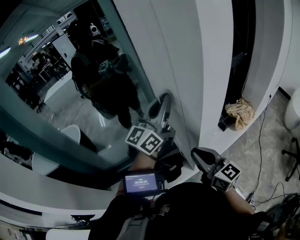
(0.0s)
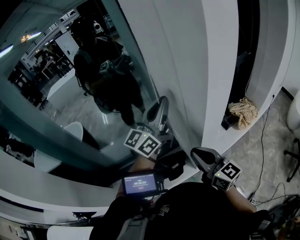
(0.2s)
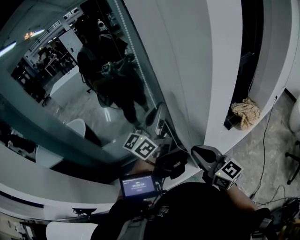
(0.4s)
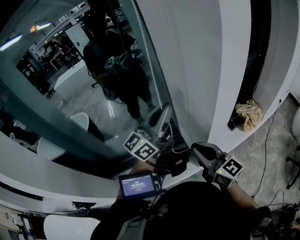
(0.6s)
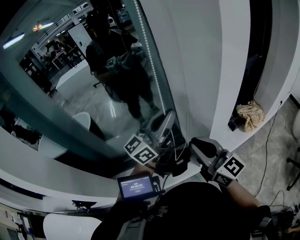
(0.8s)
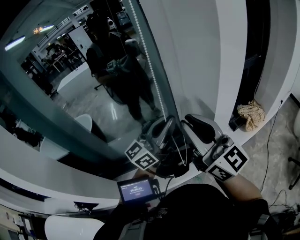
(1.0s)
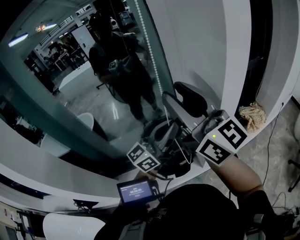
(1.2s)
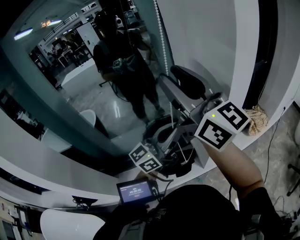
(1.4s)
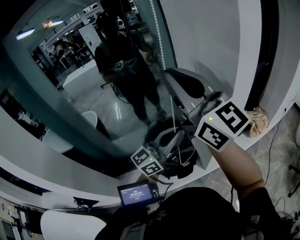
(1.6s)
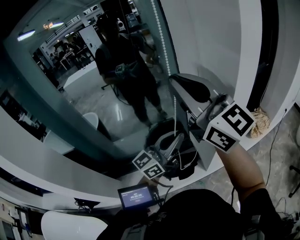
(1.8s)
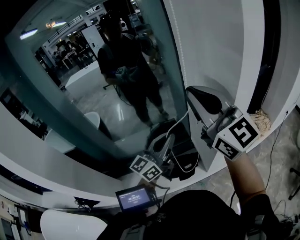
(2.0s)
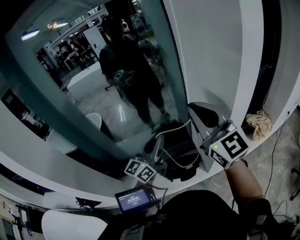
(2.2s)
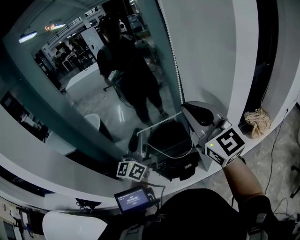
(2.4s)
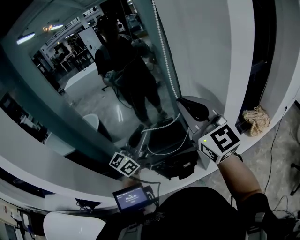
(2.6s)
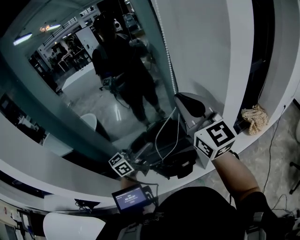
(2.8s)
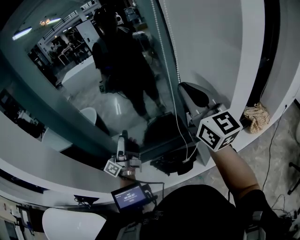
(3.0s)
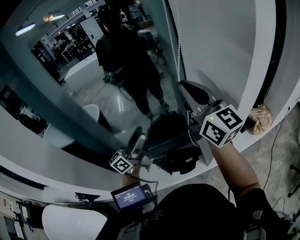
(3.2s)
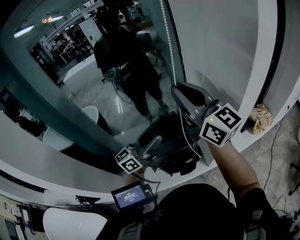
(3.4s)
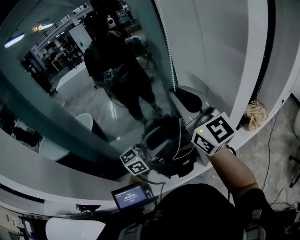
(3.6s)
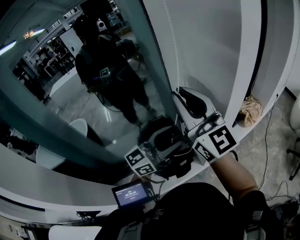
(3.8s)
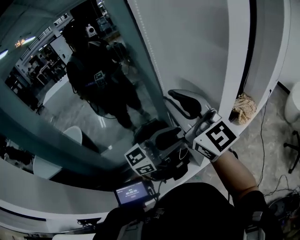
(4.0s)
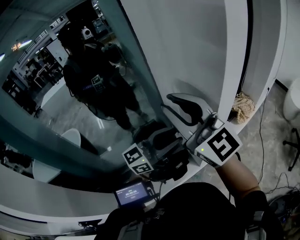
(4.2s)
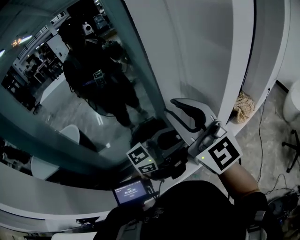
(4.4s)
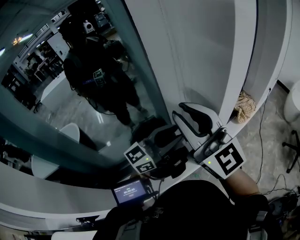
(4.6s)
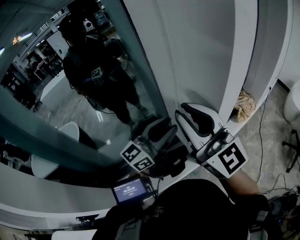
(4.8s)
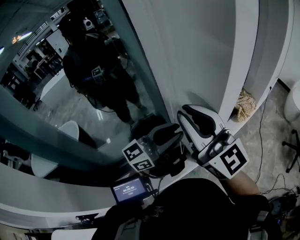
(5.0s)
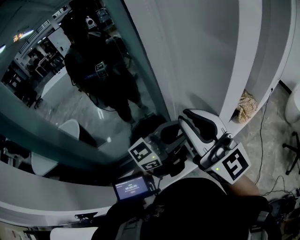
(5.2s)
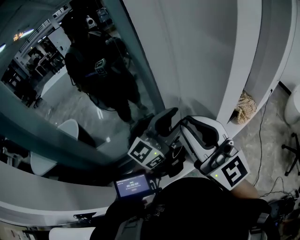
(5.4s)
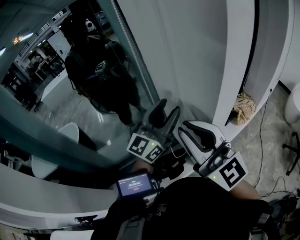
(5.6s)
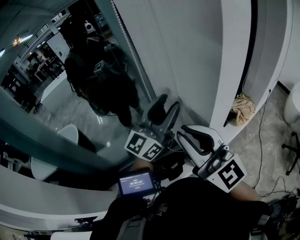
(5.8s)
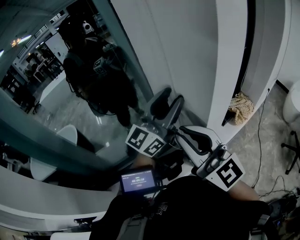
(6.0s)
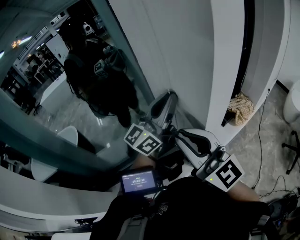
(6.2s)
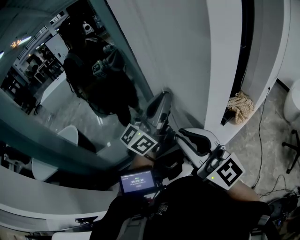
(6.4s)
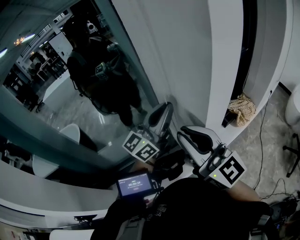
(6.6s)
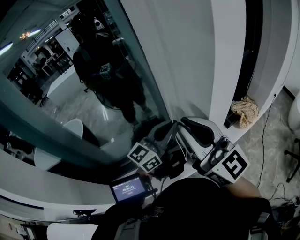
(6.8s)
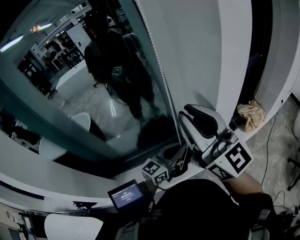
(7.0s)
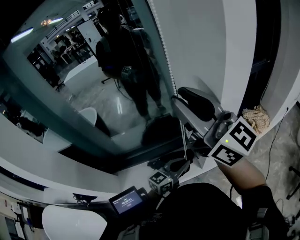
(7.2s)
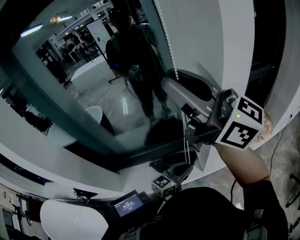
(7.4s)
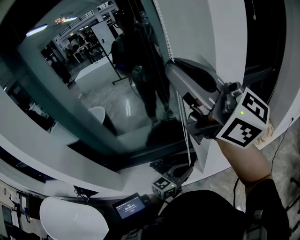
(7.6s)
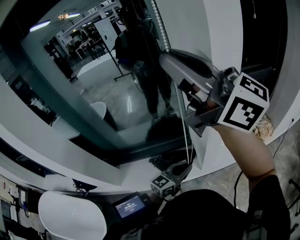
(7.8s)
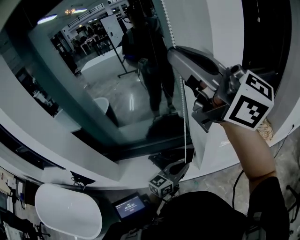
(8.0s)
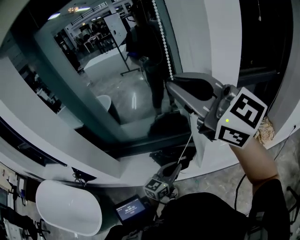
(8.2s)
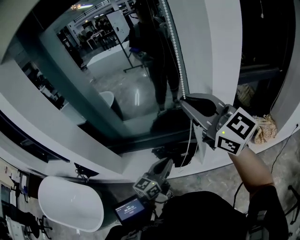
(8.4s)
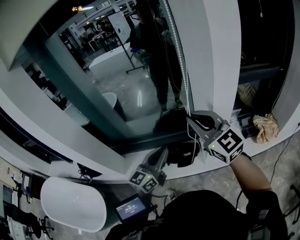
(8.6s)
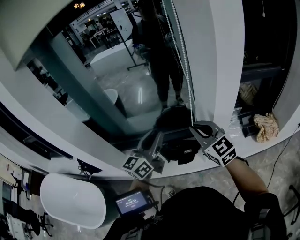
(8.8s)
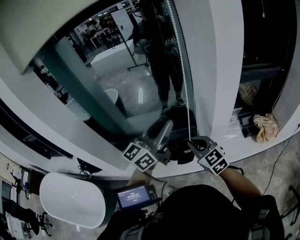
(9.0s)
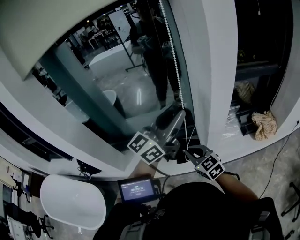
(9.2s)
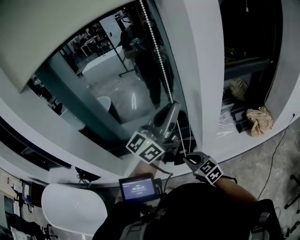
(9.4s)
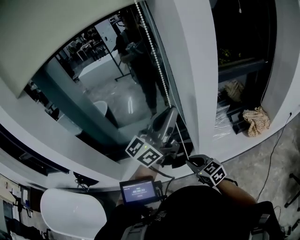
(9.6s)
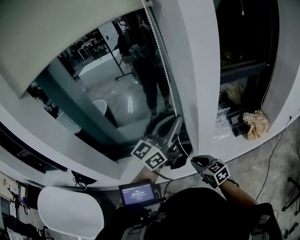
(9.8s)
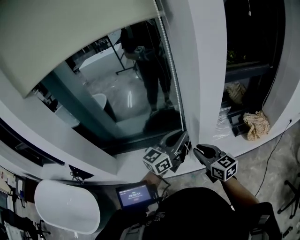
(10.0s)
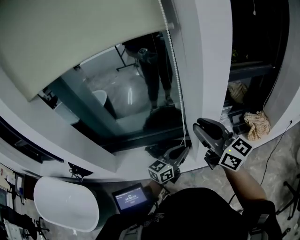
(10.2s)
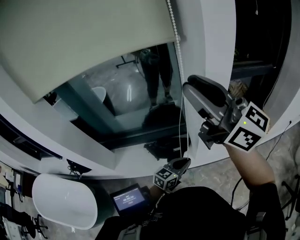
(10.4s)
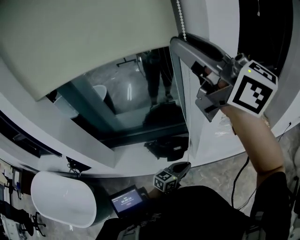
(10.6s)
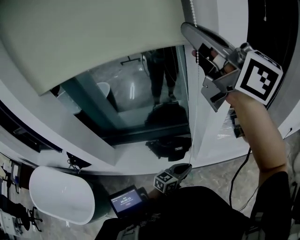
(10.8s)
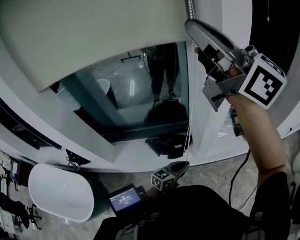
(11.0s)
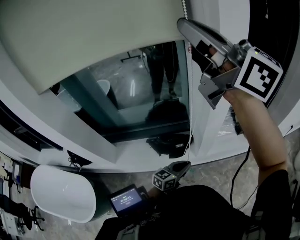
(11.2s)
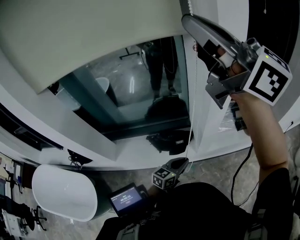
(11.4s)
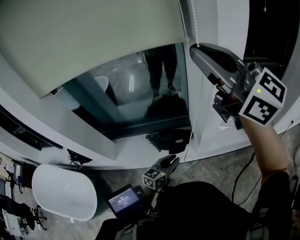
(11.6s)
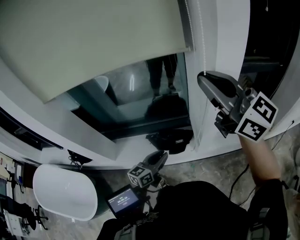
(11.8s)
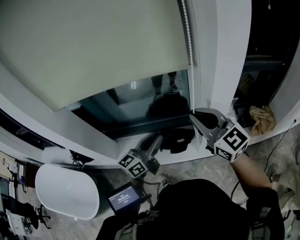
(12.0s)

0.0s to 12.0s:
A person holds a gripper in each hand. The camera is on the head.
0.0s to 1.6s: The right gripper travels upward by about 30 cm, changes its angle by about 30 degrees, and opens, then closes again. The left gripper heads backward, downward and to the left, covering some 15 cm.
1.6s to 3.0s: The left gripper swings left and right, about 25 cm each way, with 2 reversals, turns by some 40 degrees, and opens its fingers, while the right gripper heads downward, covering about 10 cm.
3.0s to 4.4s: The left gripper changes place by approximately 30 cm, swivels approximately 60 degrees, and closes up.
4.4s to 6.0s: The right gripper shifts some 10 cm downward and to the right. The left gripper goes some 15 cm upward and forward, and turns by approximately 30 degrees.
6.0s to 7.6s: The right gripper heads upward, covering approximately 20 cm, and changes its angle by roughly 30 degrees; the left gripper travels downward and backward by roughly 30 cm, tilts its fingers roughly 30 degrees downward, and closes up.
7.6s to 9.0s: The left gripper heads upward, covering about 25 cm, and changes its angle by approximately 30 degrees, while the right gripper moves downward, roughly 40 cm, and angles its fingers downward, by roughly 50 degrees.
9.0s to 10.4s: The right gripper is displaced upward by some 35 cm, angles its fingers upward, by roughly 40 degrees, and opens its fingers. The left gripper is displaced downward by some 30 cm, and points its fingers some 30 degrees further downward.
10.4s to 12.0s: The right gripper shifts approximately 20 cm downward, turns by approximately 30 degrees, and closes, while the left gripper goes approximately 20 cm upward and to the left, and changes its angle by about 30 degrees.

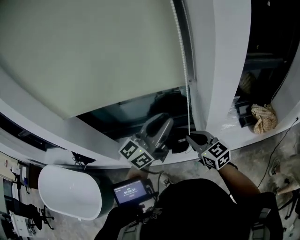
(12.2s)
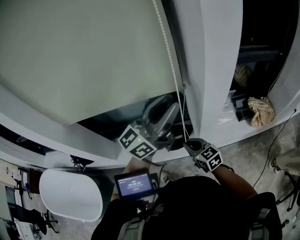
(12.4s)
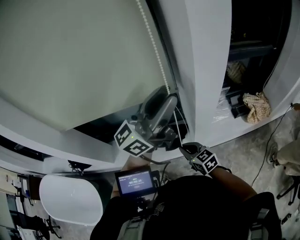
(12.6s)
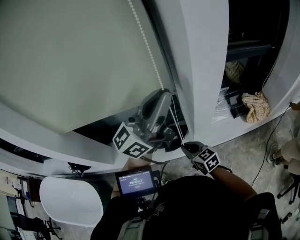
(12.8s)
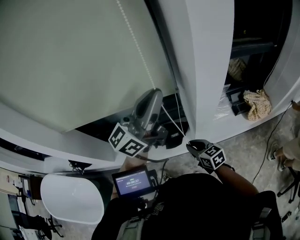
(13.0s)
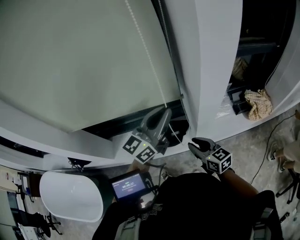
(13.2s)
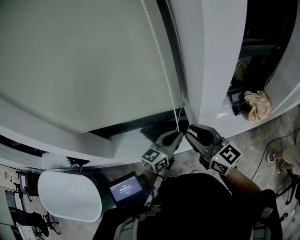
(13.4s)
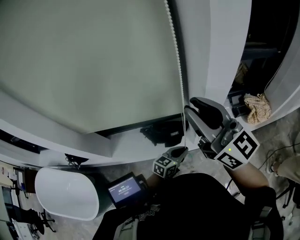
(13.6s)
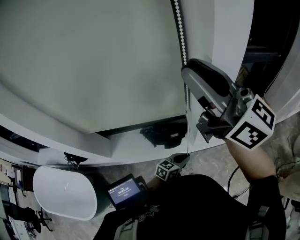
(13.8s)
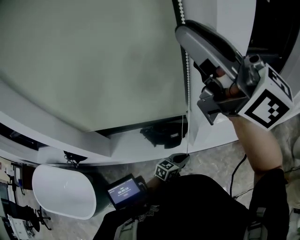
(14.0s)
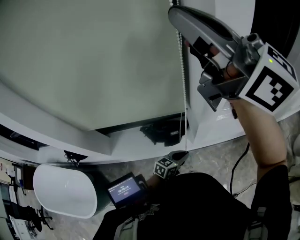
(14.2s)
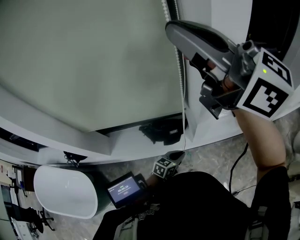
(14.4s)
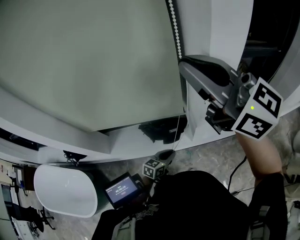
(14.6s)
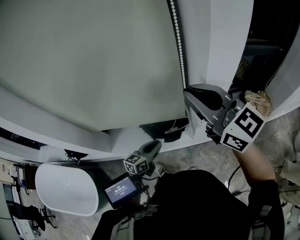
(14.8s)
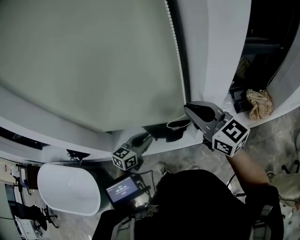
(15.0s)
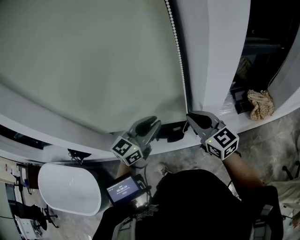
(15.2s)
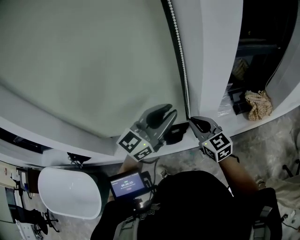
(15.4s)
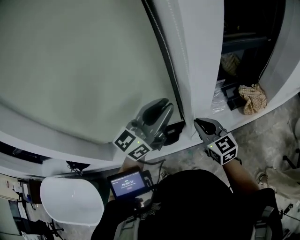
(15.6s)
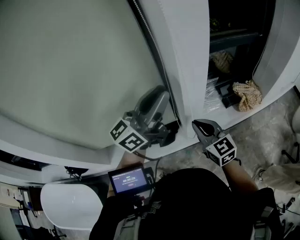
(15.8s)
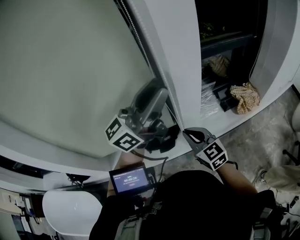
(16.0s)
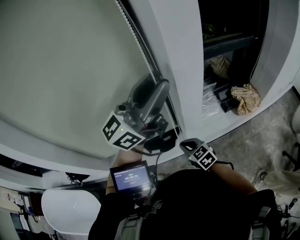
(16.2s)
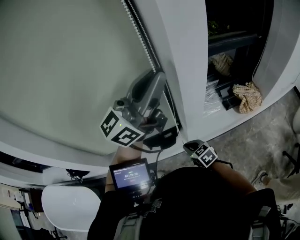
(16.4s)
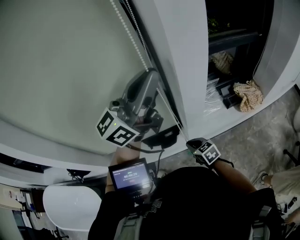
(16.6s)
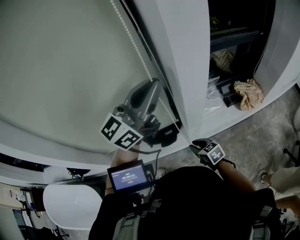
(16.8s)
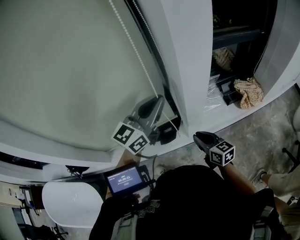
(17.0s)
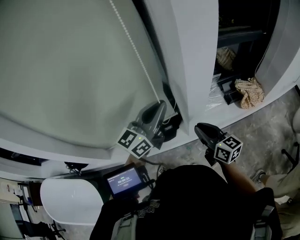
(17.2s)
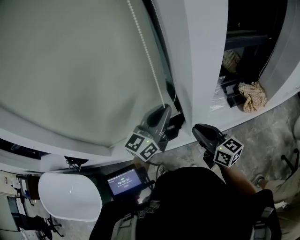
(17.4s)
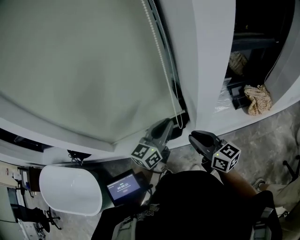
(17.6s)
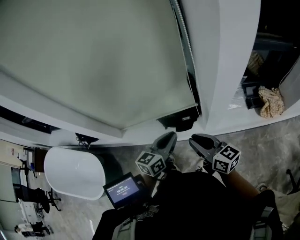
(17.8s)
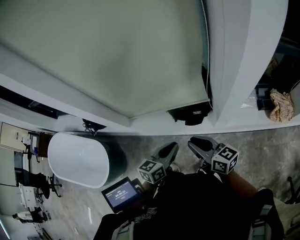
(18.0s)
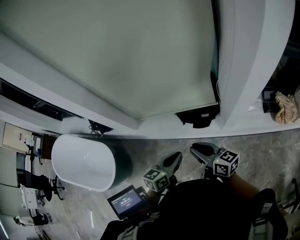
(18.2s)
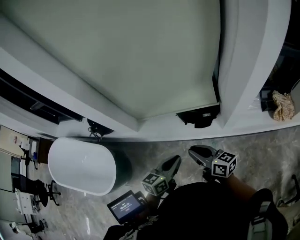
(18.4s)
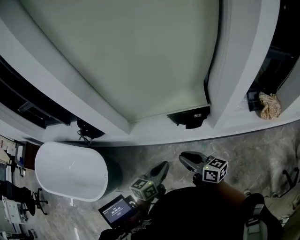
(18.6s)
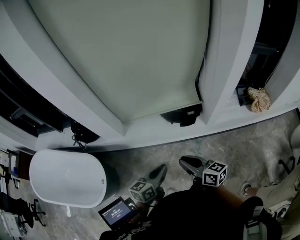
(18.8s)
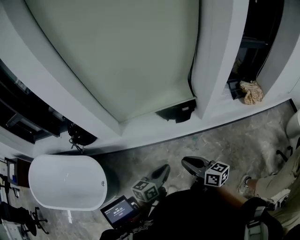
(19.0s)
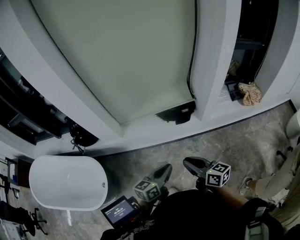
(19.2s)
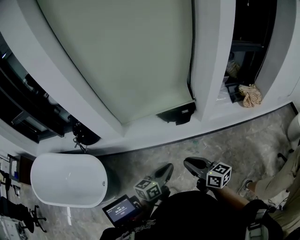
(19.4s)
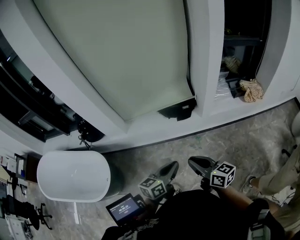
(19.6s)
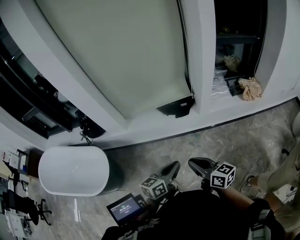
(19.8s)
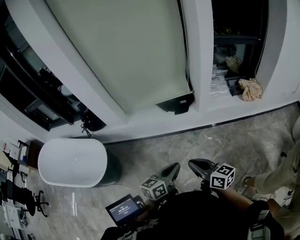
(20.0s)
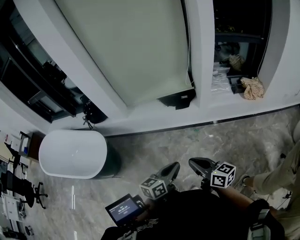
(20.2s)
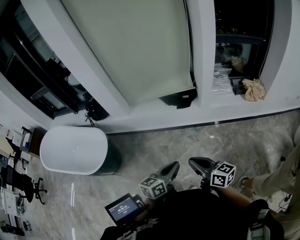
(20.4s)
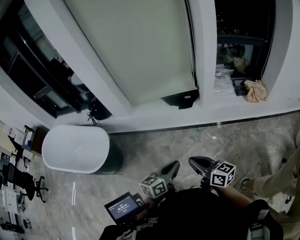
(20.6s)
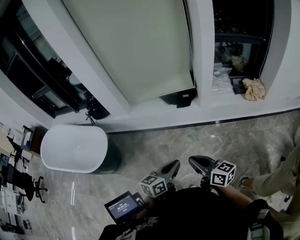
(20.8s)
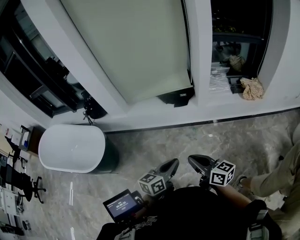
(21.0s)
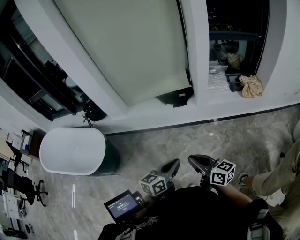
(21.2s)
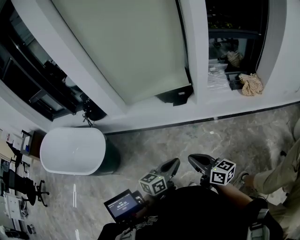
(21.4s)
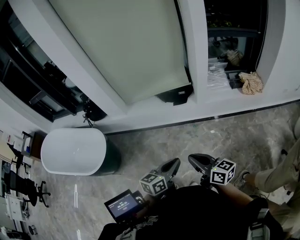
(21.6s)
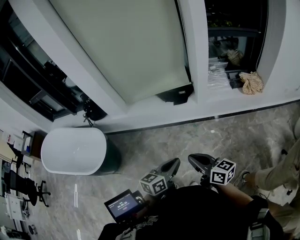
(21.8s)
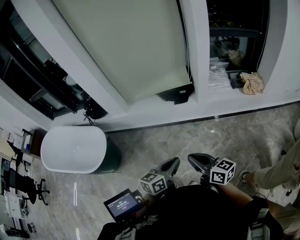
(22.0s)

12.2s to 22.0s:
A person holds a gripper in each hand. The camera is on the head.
12.2s to 13.6s: The left gripper heads downward, covering some 35 cm, and angles its fingers downward, by some 40 degrees. Meanwhile the right gripper travels upward by approximately 25 cm, and rotates about 30 degrees.
13.6s to 15.0s: The right gripper moves roughly 20 cm upward and comes back. The left gripper shifts approximately 20 cm to the left and upward.
15.0s to 16.4s: The left gripper moves upward and to the right, roughly 40 cm, and tilts its fingers approximately 50 degrees upward. Meanwhile the right gripper is displaced downward by approximately 30 cm, and tilts its fingers about 40 degrees downward.
16.4s to 17.8s: The left gripper is displaced downward by roughly 35 cm, and tilts its fingers some 40 degrees downward. Meanwhile the right gripper goes about 15 cm upward, and tilts its fingers approximately 30 degrees upward.
17.8s to 19.2s: Both grippers move backward and to the left, roughly 35 cm.
19.2s to 20.6s: The two grippers go some 25 cm backward and to the right.
20.6s to 22.0s: The grippers make only small movements.

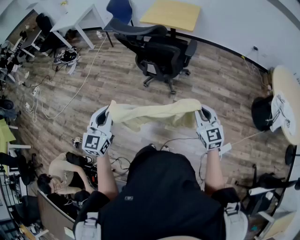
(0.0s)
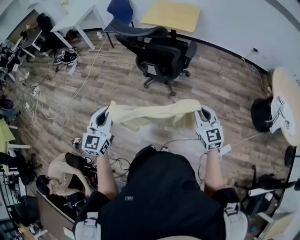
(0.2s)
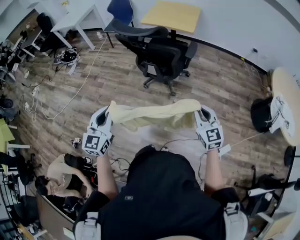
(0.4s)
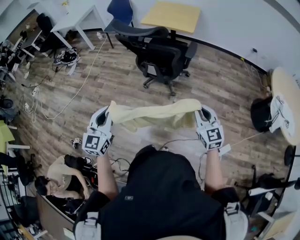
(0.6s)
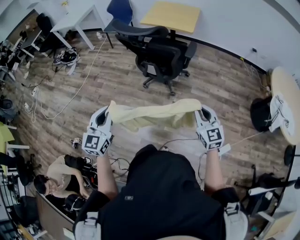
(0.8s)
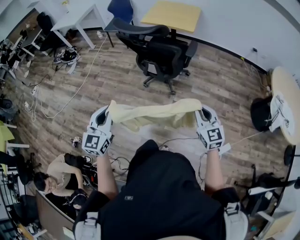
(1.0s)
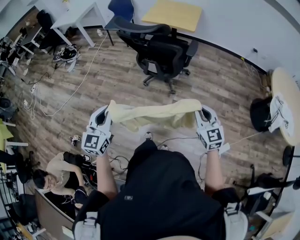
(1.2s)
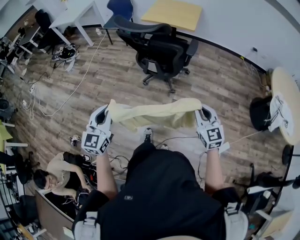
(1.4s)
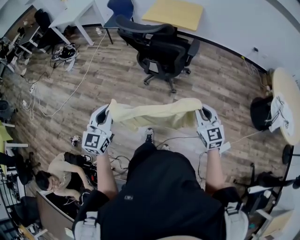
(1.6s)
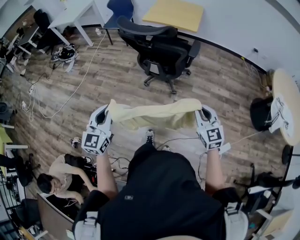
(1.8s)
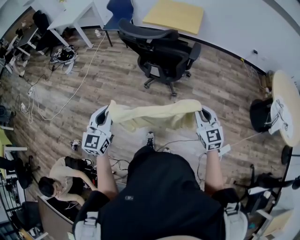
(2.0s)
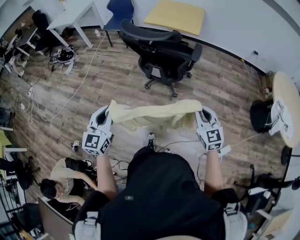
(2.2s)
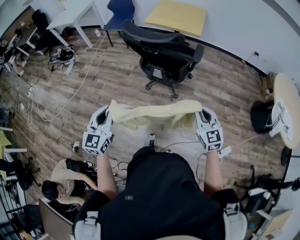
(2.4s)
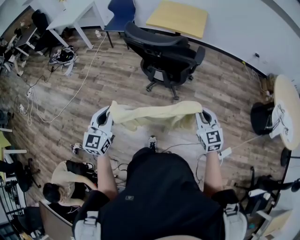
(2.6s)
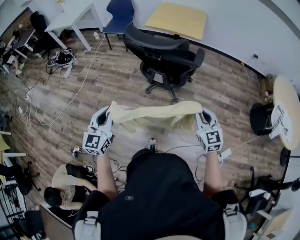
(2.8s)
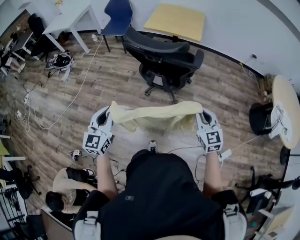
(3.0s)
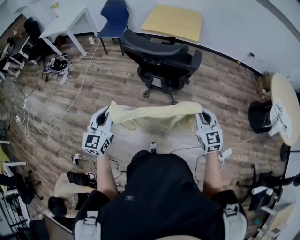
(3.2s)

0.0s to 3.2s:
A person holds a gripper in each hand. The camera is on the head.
0.0s to 1.6s: The grippers move only a little.
1.6s to 3.2s: The two grippers go roughly 15 cm forward and to the left.
